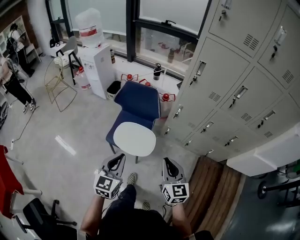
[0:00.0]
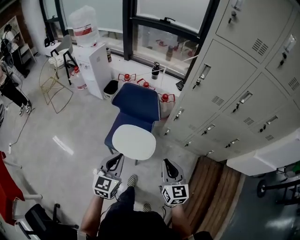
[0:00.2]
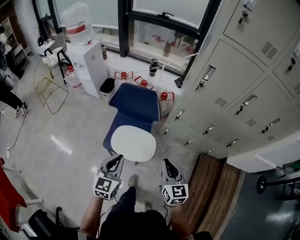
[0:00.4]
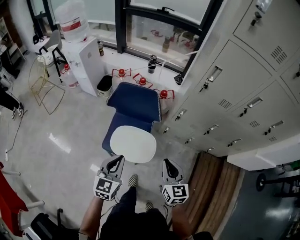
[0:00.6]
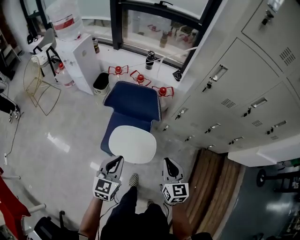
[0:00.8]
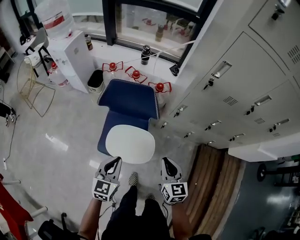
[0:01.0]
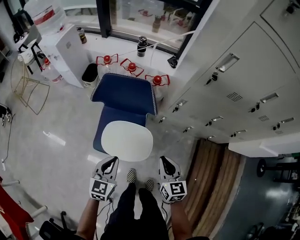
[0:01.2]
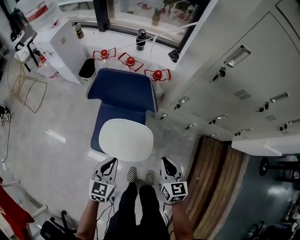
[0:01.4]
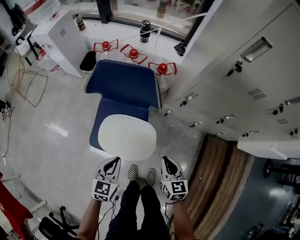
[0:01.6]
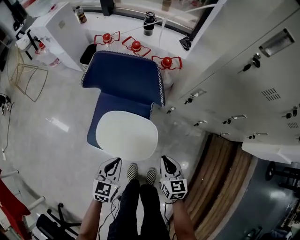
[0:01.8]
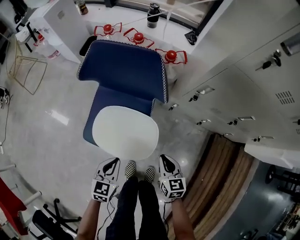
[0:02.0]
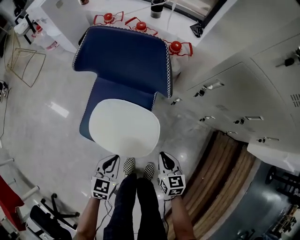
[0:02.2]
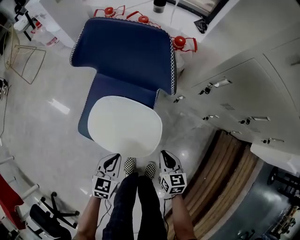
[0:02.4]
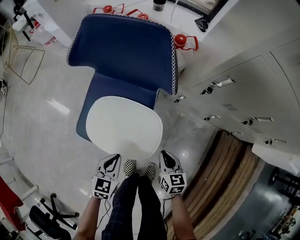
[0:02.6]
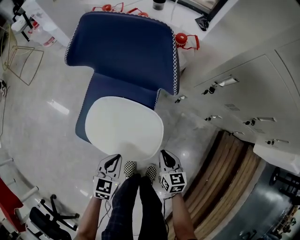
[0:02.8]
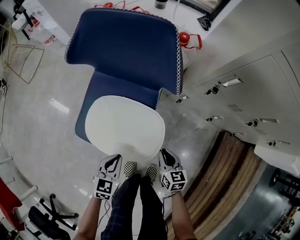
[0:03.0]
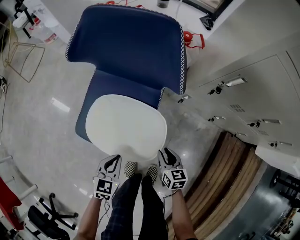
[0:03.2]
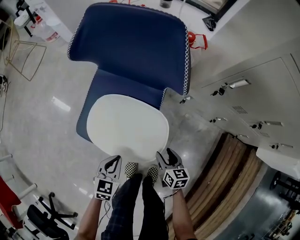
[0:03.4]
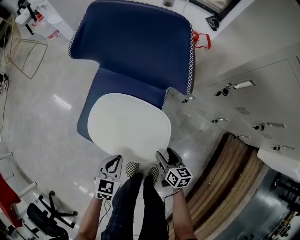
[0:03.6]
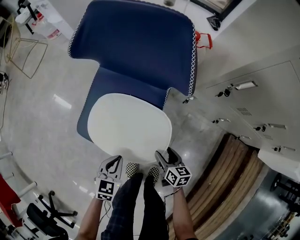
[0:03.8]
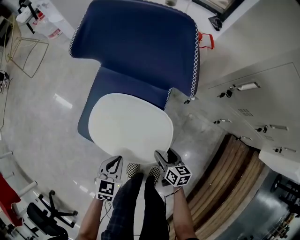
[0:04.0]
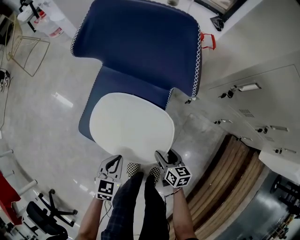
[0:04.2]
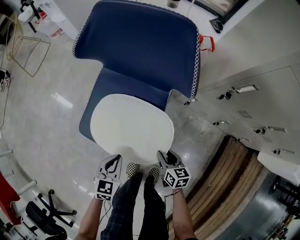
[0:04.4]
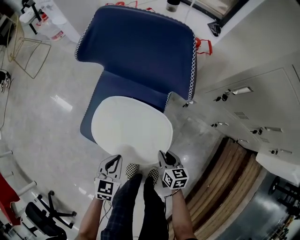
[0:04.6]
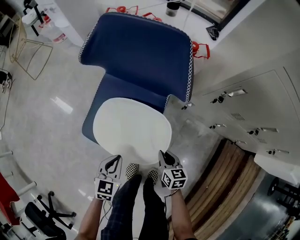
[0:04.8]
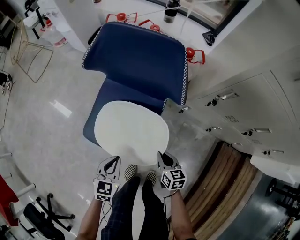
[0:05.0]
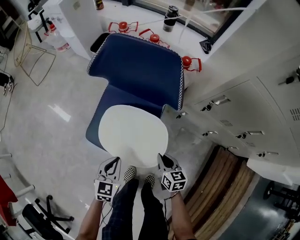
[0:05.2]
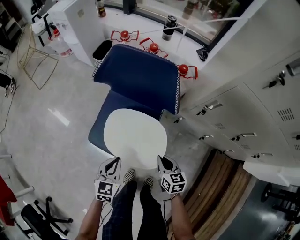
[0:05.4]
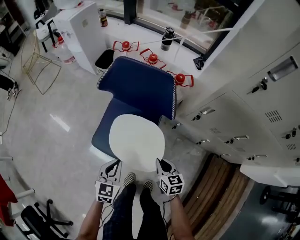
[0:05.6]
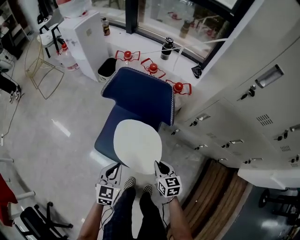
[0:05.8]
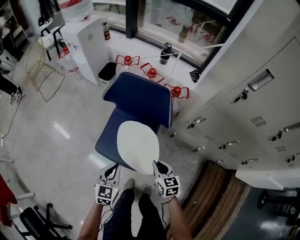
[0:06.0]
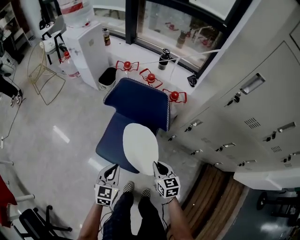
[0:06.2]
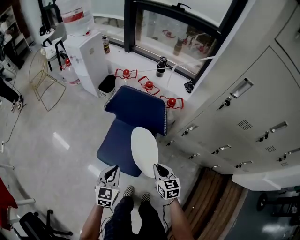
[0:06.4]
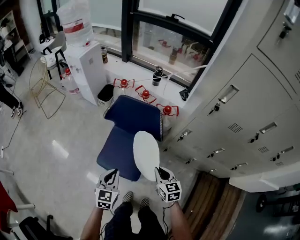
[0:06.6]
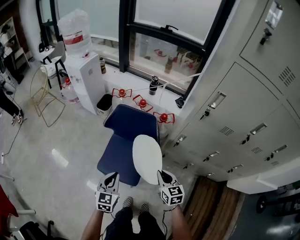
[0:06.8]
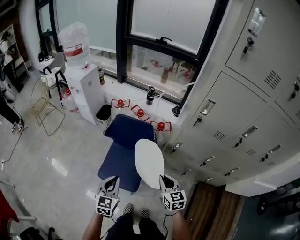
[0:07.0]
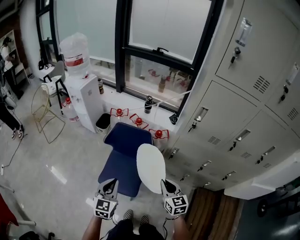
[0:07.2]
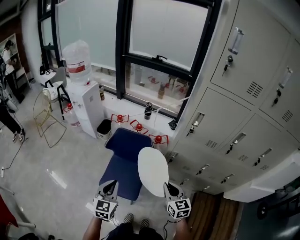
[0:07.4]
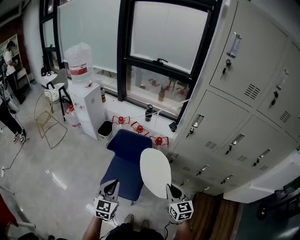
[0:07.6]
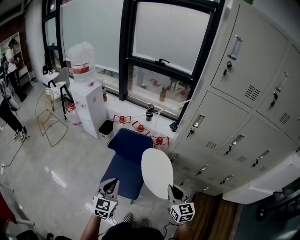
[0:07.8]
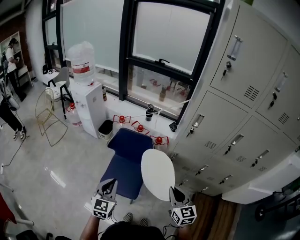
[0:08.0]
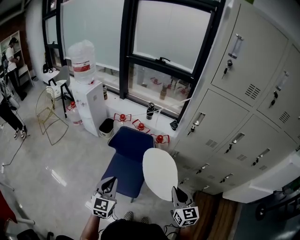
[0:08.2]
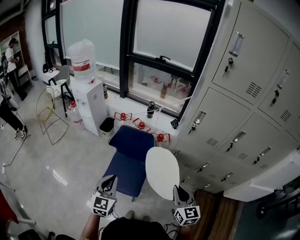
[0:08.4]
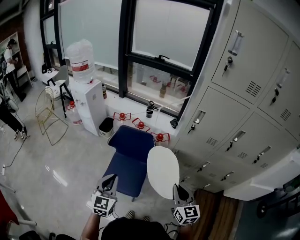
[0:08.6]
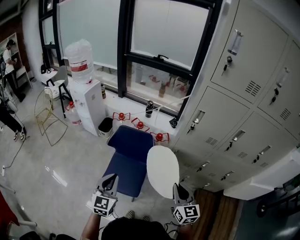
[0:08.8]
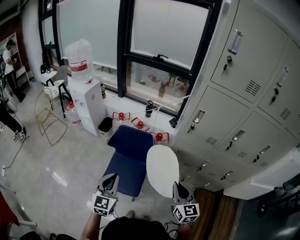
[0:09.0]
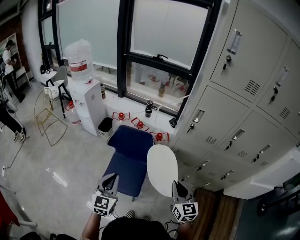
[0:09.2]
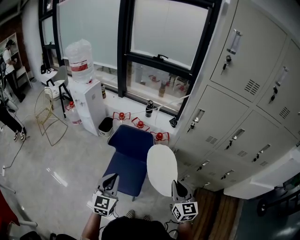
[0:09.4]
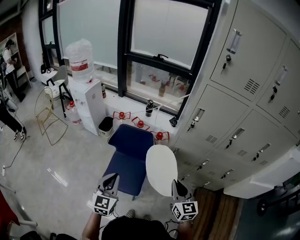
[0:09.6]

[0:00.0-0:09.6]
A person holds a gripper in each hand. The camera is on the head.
0:00.0 to 0:01.6: Both grippers travel together downward and forward, about 40 cm. The left gripper swivels roughly 20 degrees; the right gripper changes its angle by some 20 degrees.
0:01.6 to 0:03.2: Both grippers travel together downward, approximately 30 cm.
0:03.2 to 0:04.8: The right gripper opens, then closes again.
0:04.8 to 0:06.4: Both grippers travel together upward, approximately 30 cm.
0:06.4 to 0:08.0: The right gripper heads upward and backward, covering roughly 35 cm, and swivels roughly 20 degrees. Meanwhile the left gripper moves upward, roughly 25 cm.
0:08.0 to 0:09.6: There are only small adjustments of the grippers.

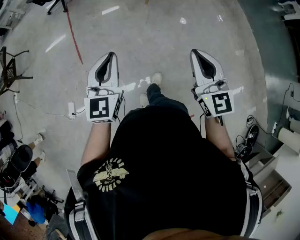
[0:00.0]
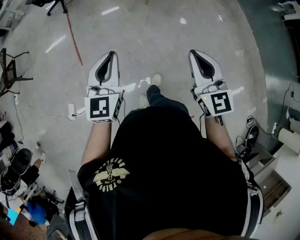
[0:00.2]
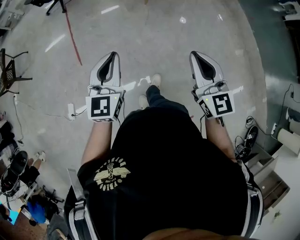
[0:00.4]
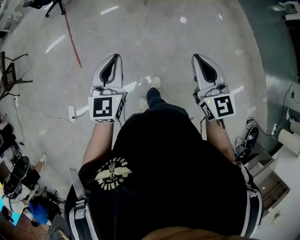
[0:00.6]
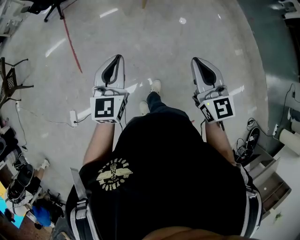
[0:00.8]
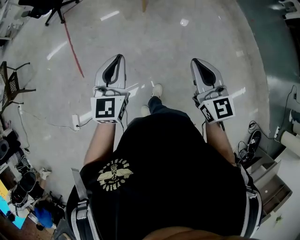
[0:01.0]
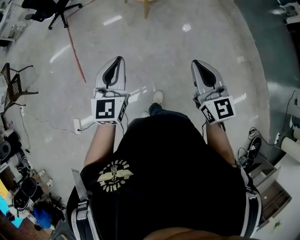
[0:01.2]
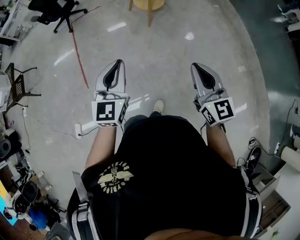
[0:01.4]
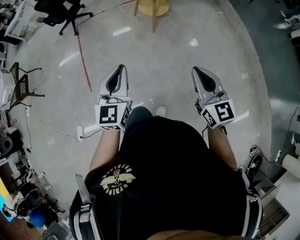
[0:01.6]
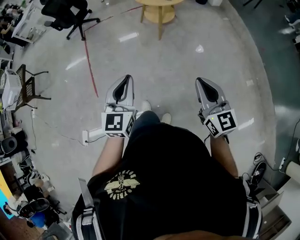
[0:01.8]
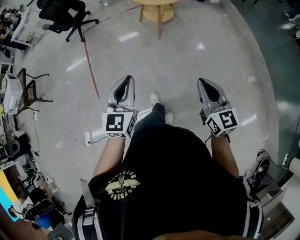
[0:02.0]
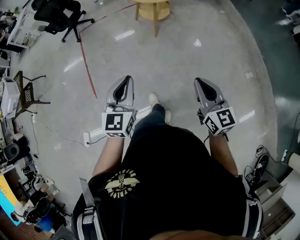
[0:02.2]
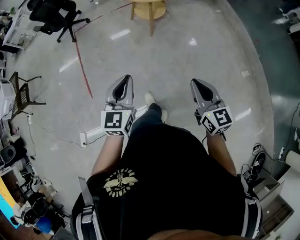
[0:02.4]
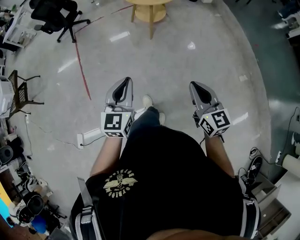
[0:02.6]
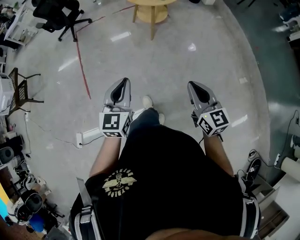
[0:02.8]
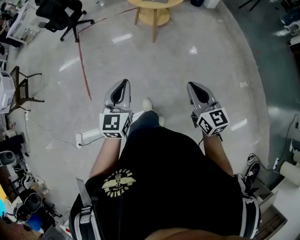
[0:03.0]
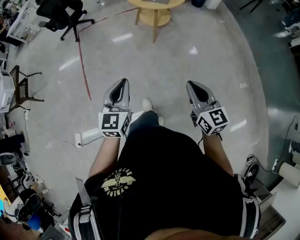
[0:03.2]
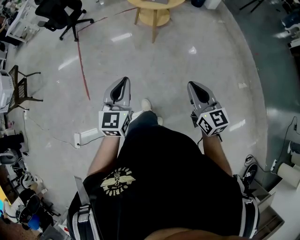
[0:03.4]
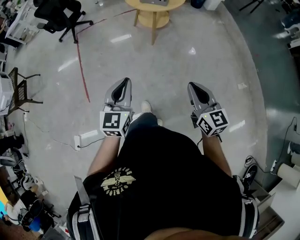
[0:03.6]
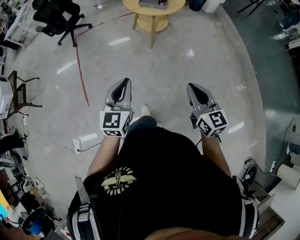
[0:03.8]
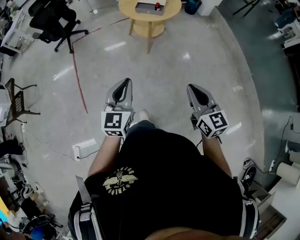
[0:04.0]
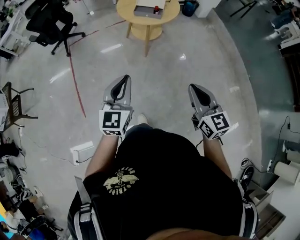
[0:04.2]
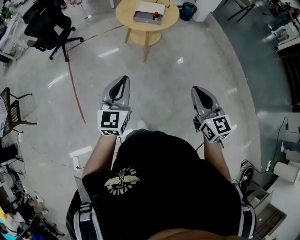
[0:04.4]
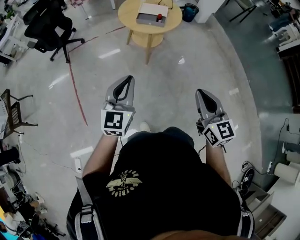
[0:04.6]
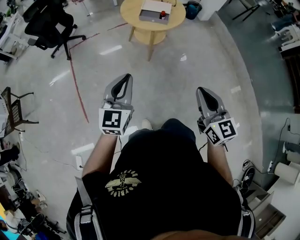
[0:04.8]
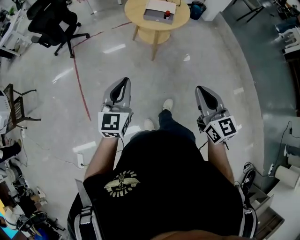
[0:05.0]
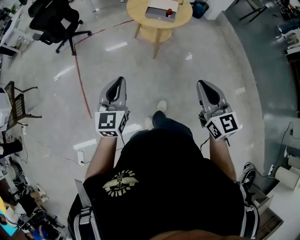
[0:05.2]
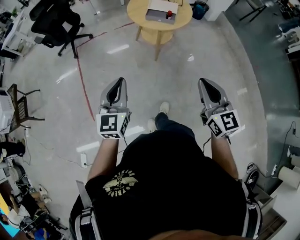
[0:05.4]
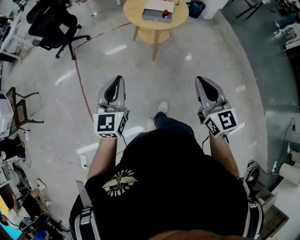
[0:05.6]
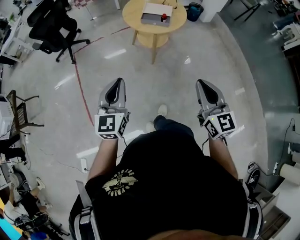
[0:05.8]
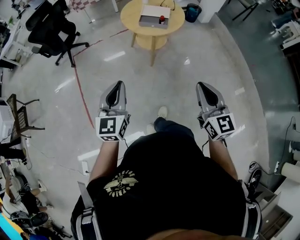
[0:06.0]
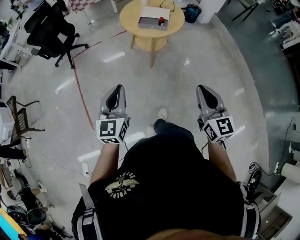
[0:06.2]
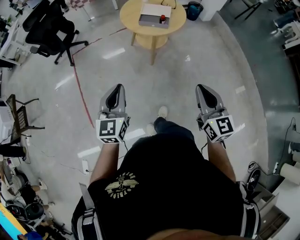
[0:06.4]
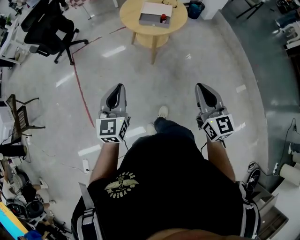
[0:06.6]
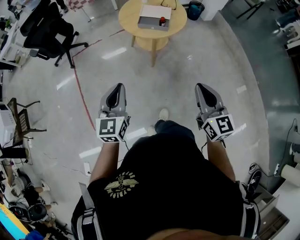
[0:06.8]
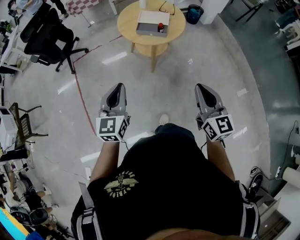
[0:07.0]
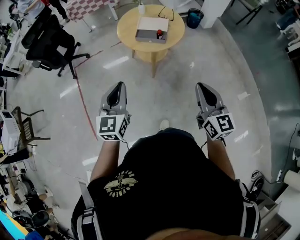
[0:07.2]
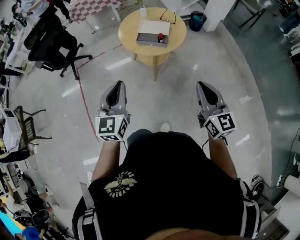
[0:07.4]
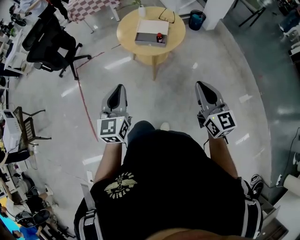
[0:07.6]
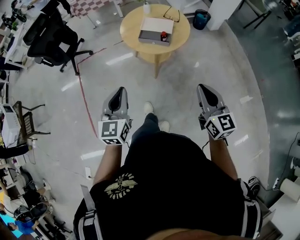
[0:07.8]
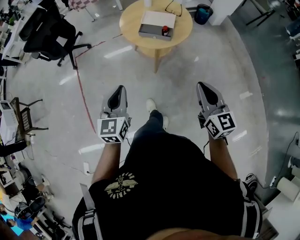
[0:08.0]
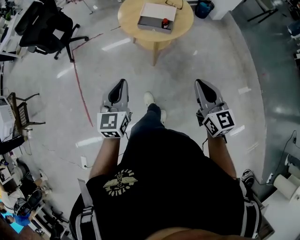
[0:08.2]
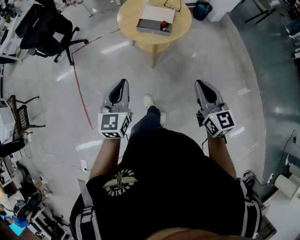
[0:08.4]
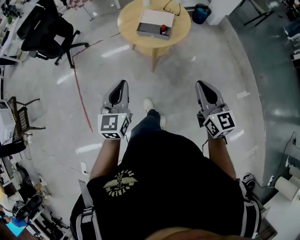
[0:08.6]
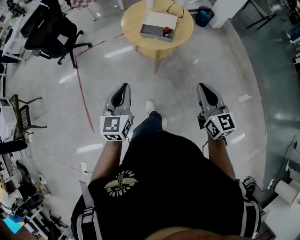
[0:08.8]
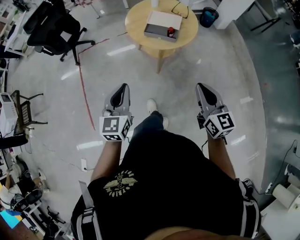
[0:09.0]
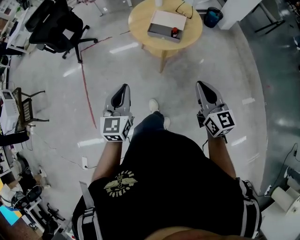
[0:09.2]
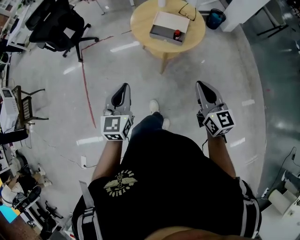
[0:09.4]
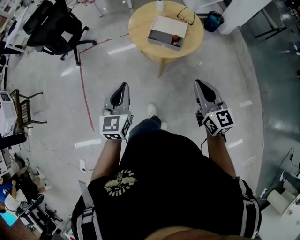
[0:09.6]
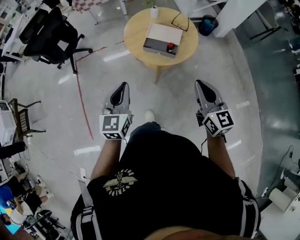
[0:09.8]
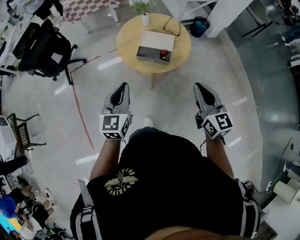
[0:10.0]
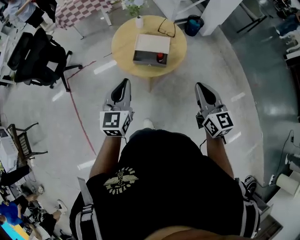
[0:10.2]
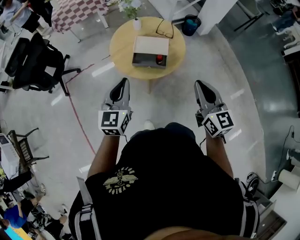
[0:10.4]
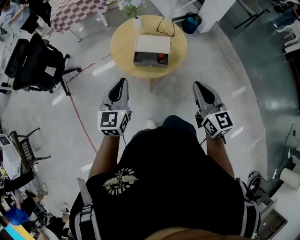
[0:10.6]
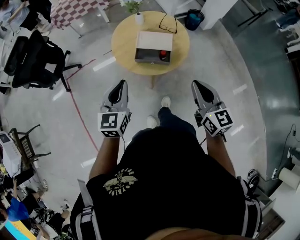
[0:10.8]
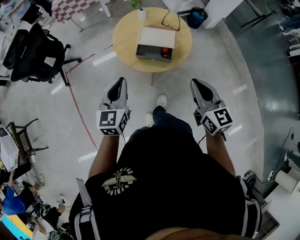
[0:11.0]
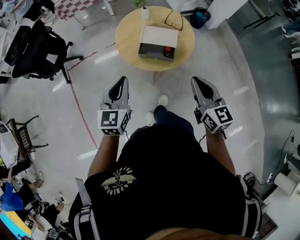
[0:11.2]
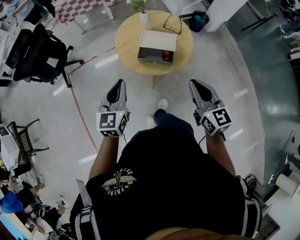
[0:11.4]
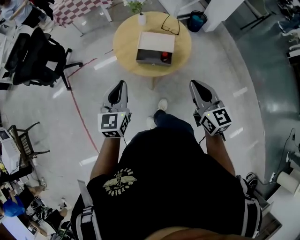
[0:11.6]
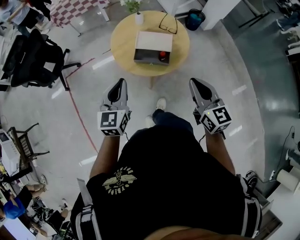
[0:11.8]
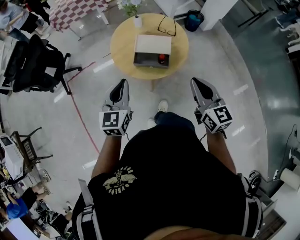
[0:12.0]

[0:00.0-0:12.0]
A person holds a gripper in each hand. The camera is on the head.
0:00.0 to 0:01.6: Both grippers move forward and to the right, about 20 cm.
0:01.6 to 0:03.0: The right gripper ends up roughly 5 cm from where it was.
0:03.0 to 0:04.4: The right gripper heads forward and upward, covering some 15 cm. The left gripper shifts about 20 cm forward.
0:04.4 to 0:06.0: The left gripper shifts about 5 cm to the left; the right gripper shifts about 5 cm forward.
0:06.0 to 0:07.6: The grippers both shift forward and to the right by some 20 cm.
0:07.6 to 0:09.0: The left gripper ends up approximately 5 cm from where it was. Meanwhile the right gripper ends up about 5 cm from where it was.
0:09.0 to 0:10.4: Both grippers move forward, about 20 cm.
0:10.4 to 0:12.0: The right gripper shifts by some 5 cm.

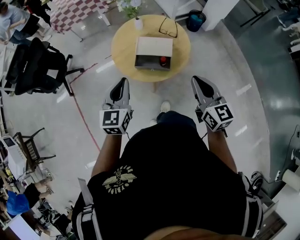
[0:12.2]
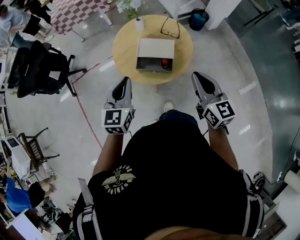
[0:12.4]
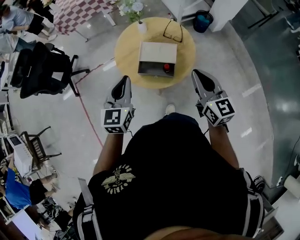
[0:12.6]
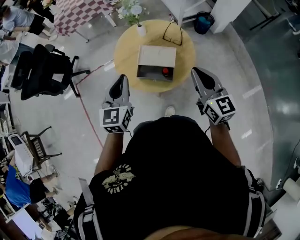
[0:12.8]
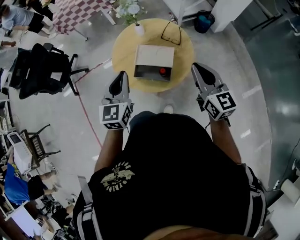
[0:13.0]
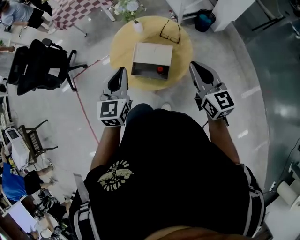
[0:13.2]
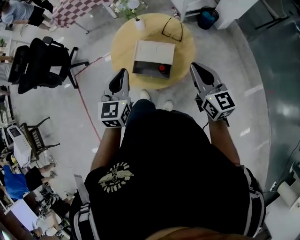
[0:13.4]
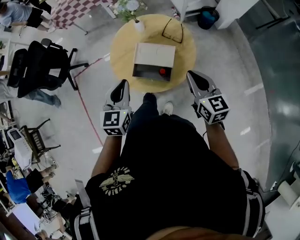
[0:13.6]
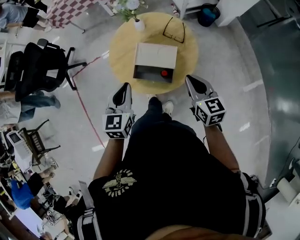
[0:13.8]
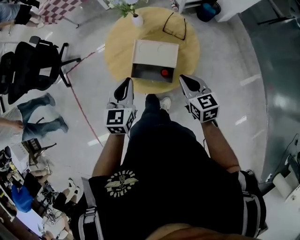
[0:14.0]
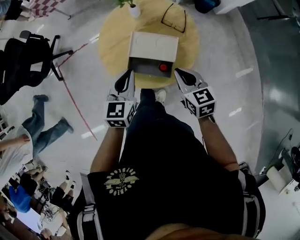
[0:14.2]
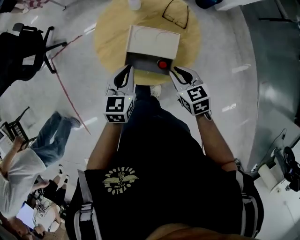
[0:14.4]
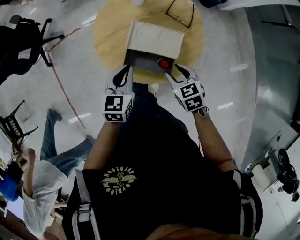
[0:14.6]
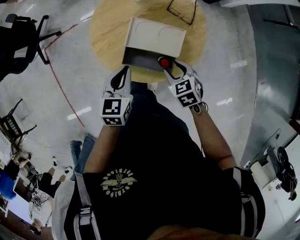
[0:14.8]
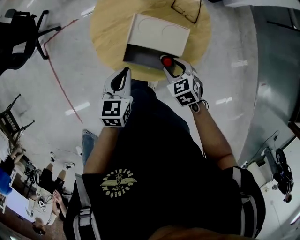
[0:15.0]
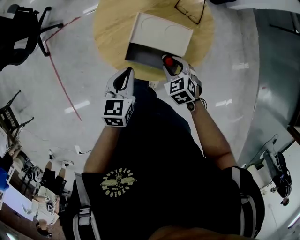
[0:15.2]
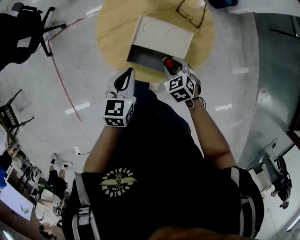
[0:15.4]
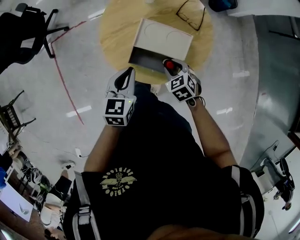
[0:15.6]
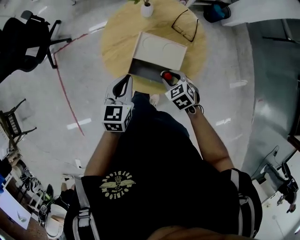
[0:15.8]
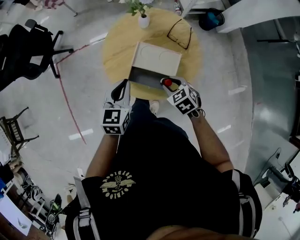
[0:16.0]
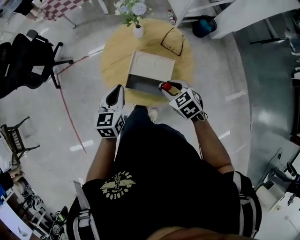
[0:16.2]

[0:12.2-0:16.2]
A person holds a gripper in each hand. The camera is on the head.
0:12.2 to 0:13.6: The left gripper moves forward and to the right, some 10 cm; the right gripper goes roughly 15 cm forward and downward.
0:13.6 to 0:14.8: The left gripper shifts approximately 20 cm downward and forward. The right gripper heads downward, covering approximately 25 cm, points its fingers about 40 degrees further downward, and opens.
0:14.8 to 0:16.2: Both grippers move upward, some 10 cm.
